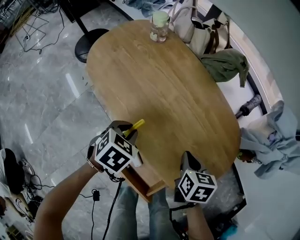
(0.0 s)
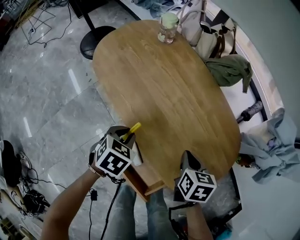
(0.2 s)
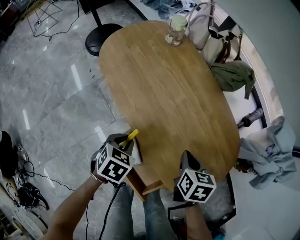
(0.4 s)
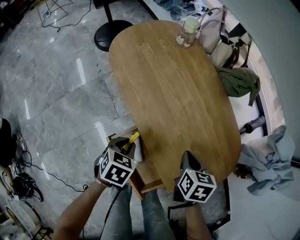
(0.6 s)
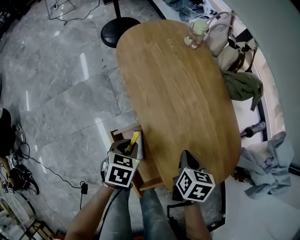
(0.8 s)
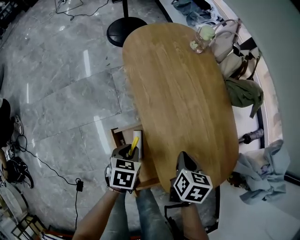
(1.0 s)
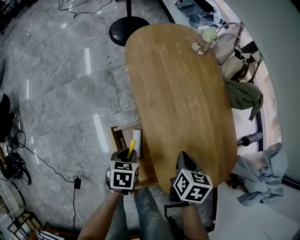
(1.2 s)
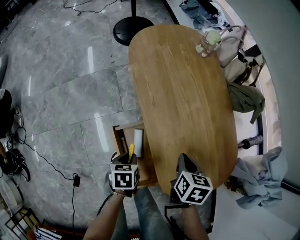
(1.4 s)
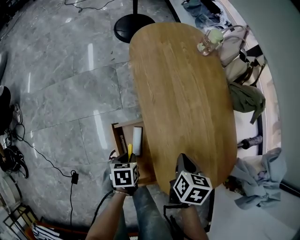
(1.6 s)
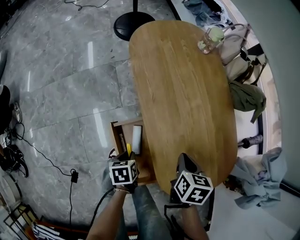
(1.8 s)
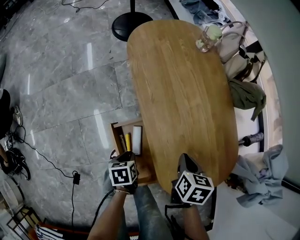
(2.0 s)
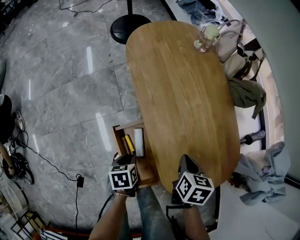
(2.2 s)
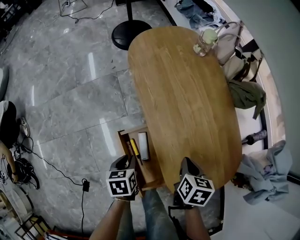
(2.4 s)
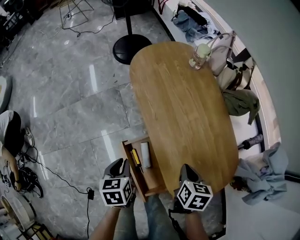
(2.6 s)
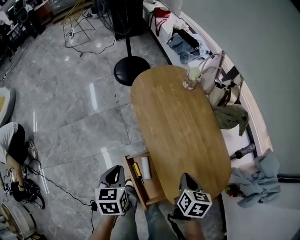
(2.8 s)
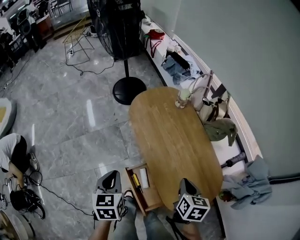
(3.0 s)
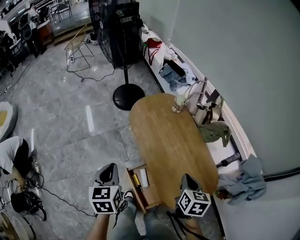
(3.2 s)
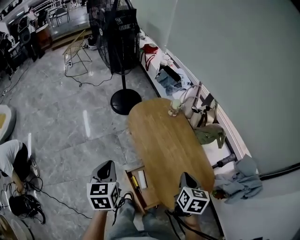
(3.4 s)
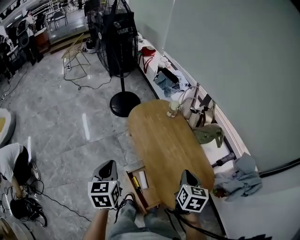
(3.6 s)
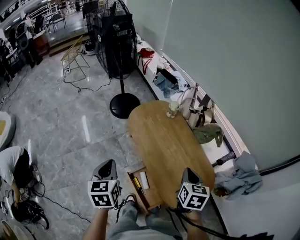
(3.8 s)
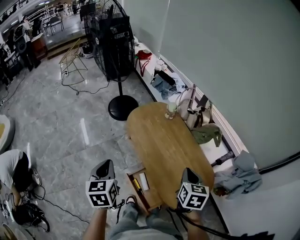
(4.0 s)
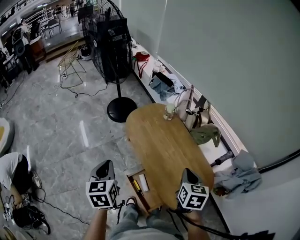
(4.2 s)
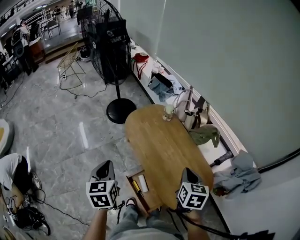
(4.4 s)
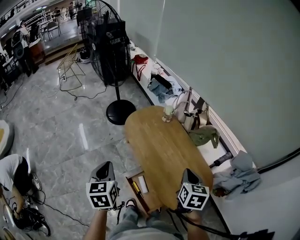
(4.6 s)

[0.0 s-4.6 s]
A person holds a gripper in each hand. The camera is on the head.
0.0 to 1.6 s: The right gripper swivels approximately 20 degrees, while the left gripper moves roughly 20 cm, and rolls counterclockwise, seen from behind, by roughly 70 degrees.
1.6 to 3.0 s: The left gripper is displaced upward by about 35 cm, and changes its angle by approximately 40 degrees. The right gripper travels upward by approximately 20 cm.
3.0 to 4.6 s: The grippers both shift upward by about 15 cm.

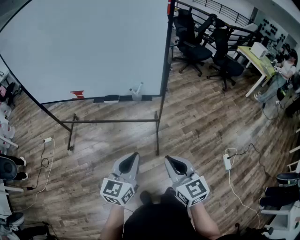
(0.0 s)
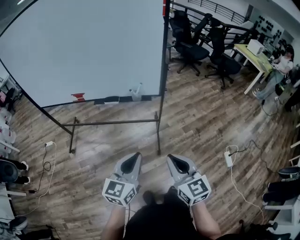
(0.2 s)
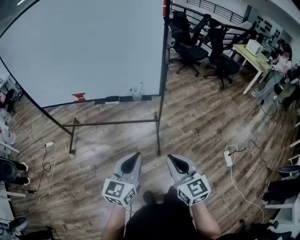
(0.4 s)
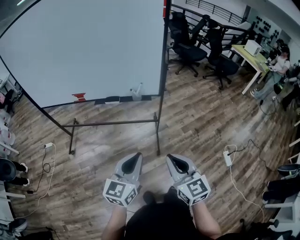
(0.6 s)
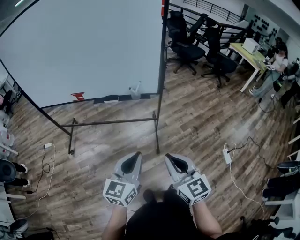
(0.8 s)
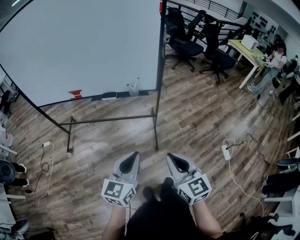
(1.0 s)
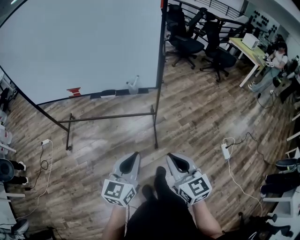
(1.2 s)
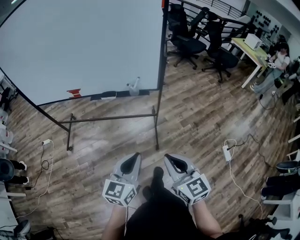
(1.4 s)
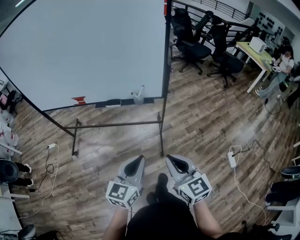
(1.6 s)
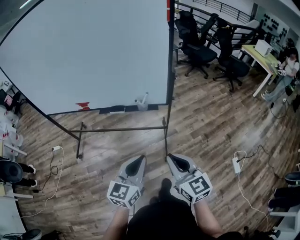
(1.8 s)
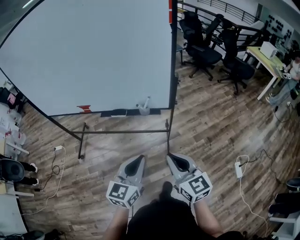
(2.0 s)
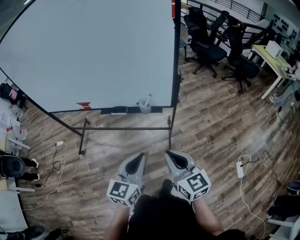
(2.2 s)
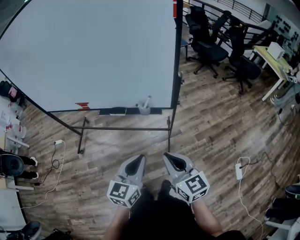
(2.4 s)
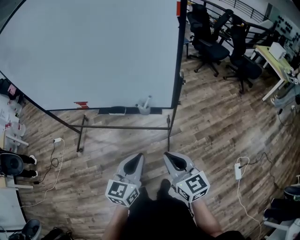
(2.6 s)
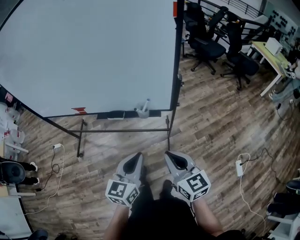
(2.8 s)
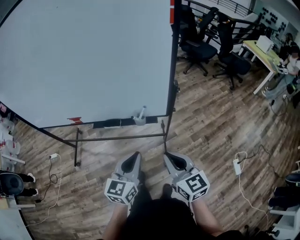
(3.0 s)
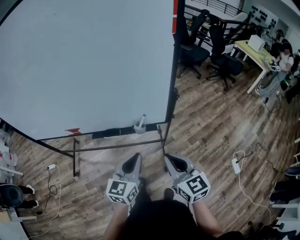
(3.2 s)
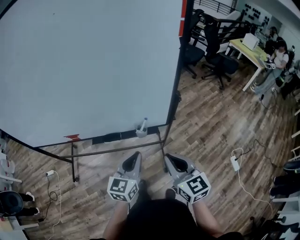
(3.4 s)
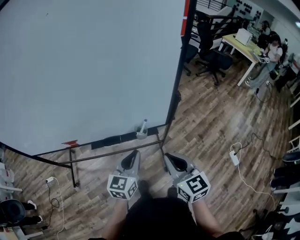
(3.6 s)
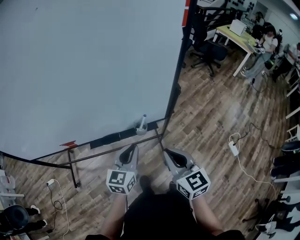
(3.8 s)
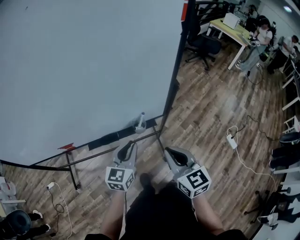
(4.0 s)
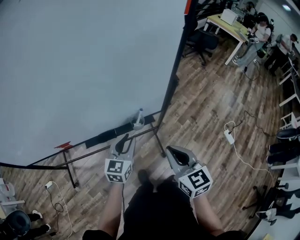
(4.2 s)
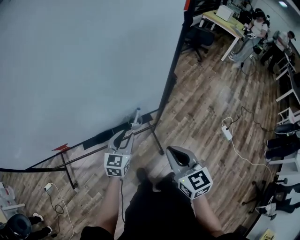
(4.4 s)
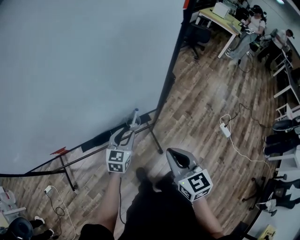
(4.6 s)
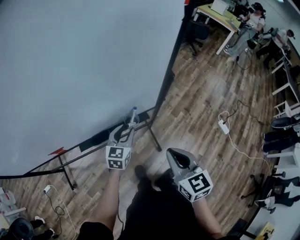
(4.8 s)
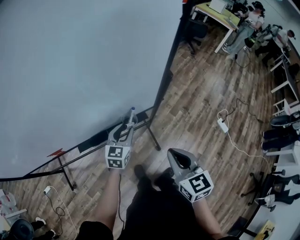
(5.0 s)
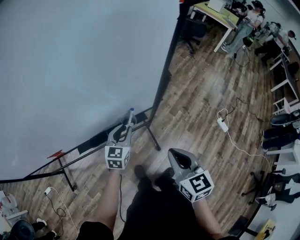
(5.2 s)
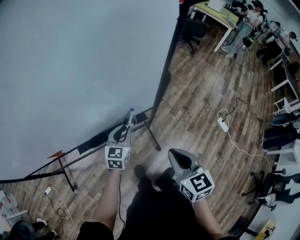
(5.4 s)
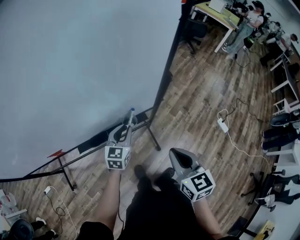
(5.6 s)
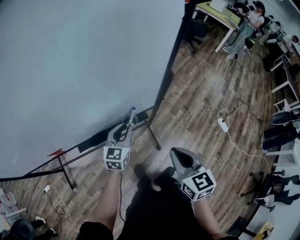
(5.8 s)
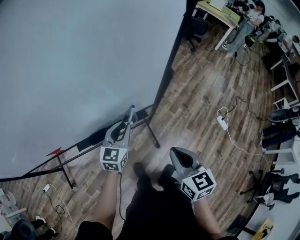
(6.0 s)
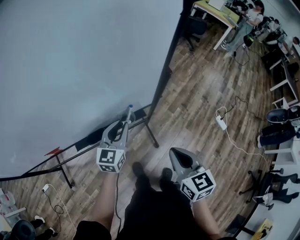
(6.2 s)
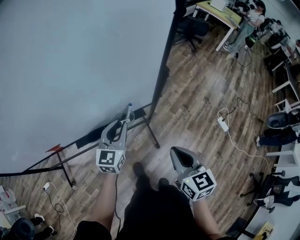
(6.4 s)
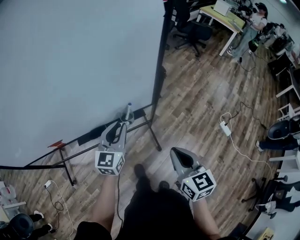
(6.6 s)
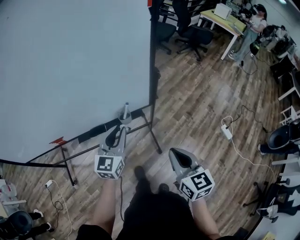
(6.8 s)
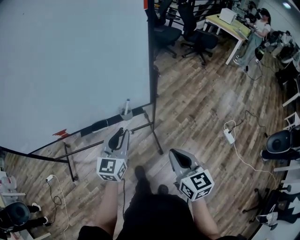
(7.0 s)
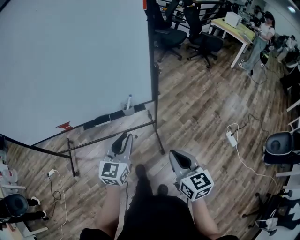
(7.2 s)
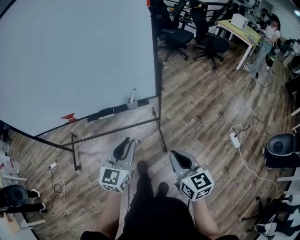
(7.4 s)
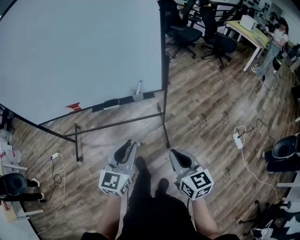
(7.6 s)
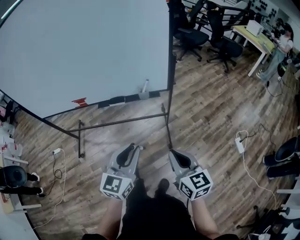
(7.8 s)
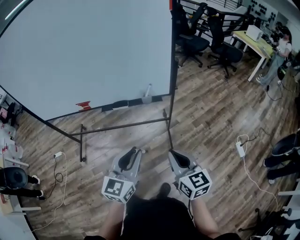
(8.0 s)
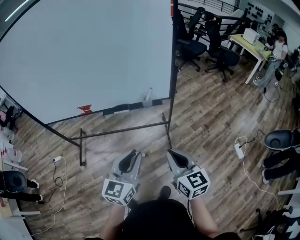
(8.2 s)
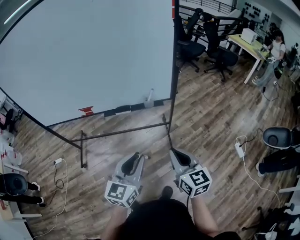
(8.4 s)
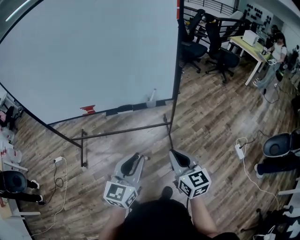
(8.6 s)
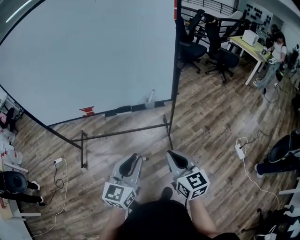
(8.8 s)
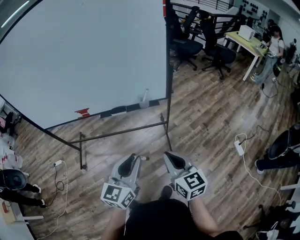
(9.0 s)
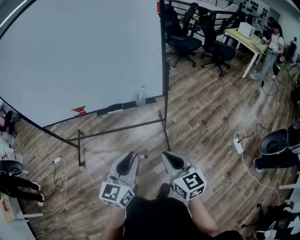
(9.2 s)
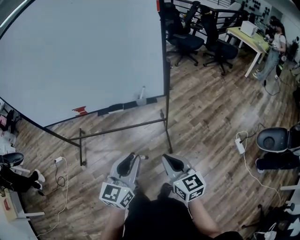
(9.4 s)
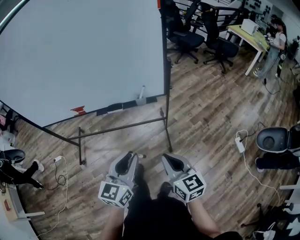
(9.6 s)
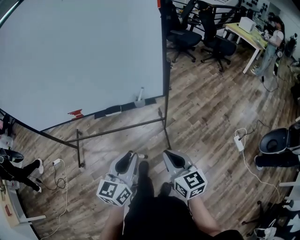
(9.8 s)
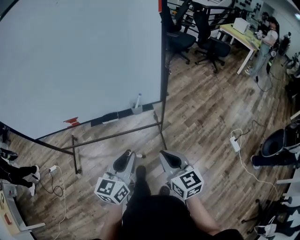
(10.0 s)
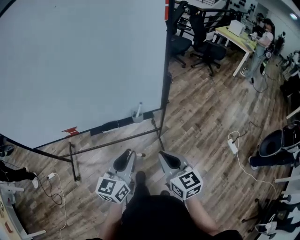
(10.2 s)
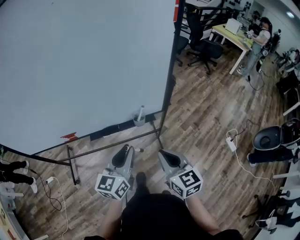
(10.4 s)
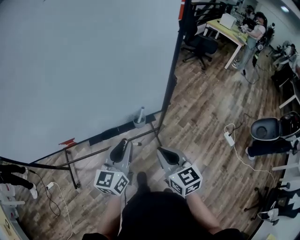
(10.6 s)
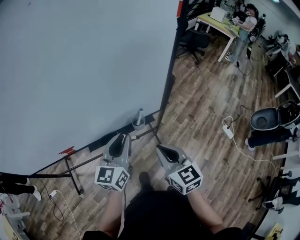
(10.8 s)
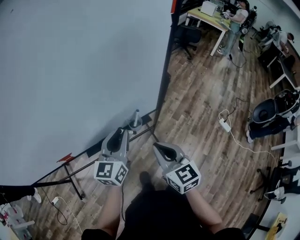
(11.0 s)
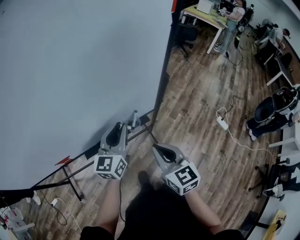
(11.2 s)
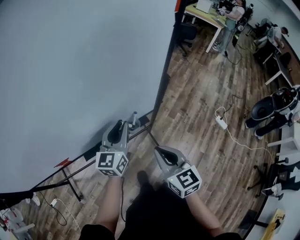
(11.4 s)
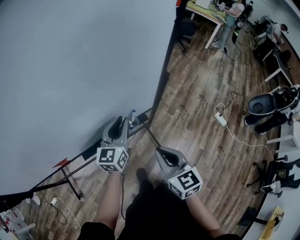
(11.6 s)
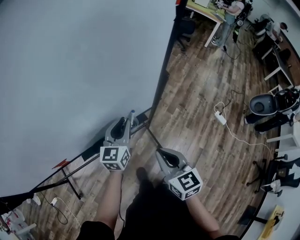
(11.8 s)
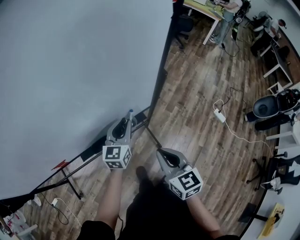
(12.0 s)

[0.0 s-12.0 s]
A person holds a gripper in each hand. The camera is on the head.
0.0 to 1.6 s: The grippers stay close to where they were, moving slightly.
1.6 to 3.0 s: Both grippers move forward, roughly 20 cm.
3.0 to 4.4 s: The left gripper is displaced forward, downward and to the left by approximately 25 cm, rotates approximately 20 degrees, and opens. The right gripper heads to the left and forward, covering roughly 10 cm, and rotates some 20 degrees.
6.0 to 7.6 s: The right gripper moves backward and to the right, about 20 cm; the left gripper is displaced backward by some 30 cm.
7.6 to 9.0 s: The right gripper travels to the left by about 5 cm. The left gripper travels backward by roughly 5 cm.
9.0 to 10.4 s: The two grippers go about 20 cm forward.
10.4 to 12.0 s: The left gripper moves forward and downward, approximately 25 cm. Meanwhile the right gripper travels forward by some 5 cm.

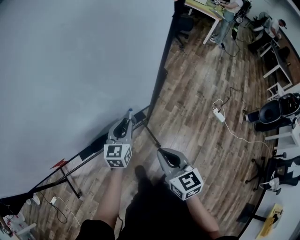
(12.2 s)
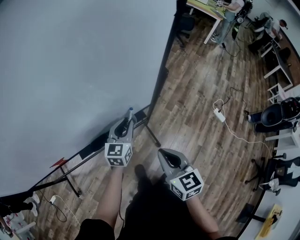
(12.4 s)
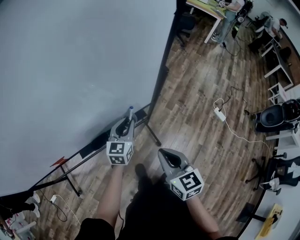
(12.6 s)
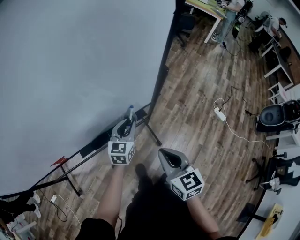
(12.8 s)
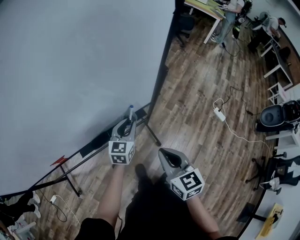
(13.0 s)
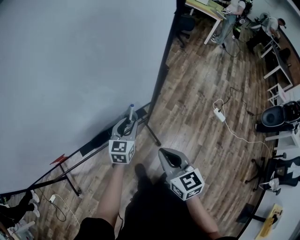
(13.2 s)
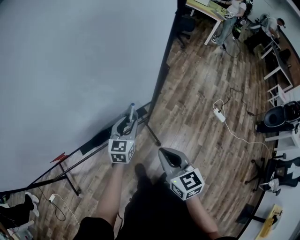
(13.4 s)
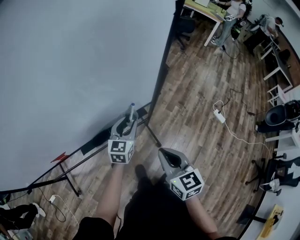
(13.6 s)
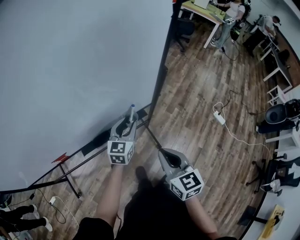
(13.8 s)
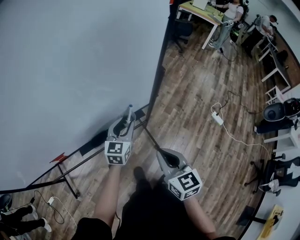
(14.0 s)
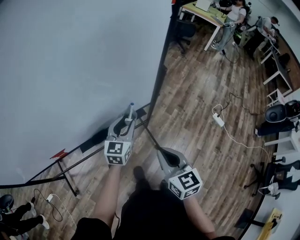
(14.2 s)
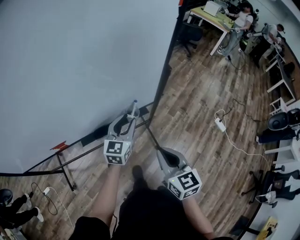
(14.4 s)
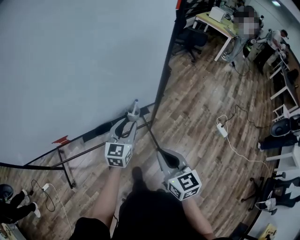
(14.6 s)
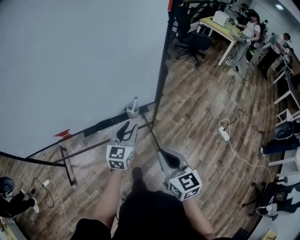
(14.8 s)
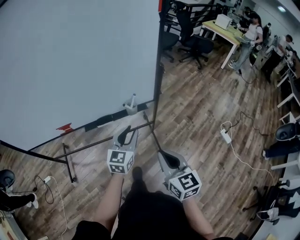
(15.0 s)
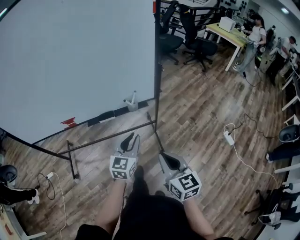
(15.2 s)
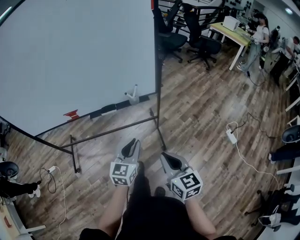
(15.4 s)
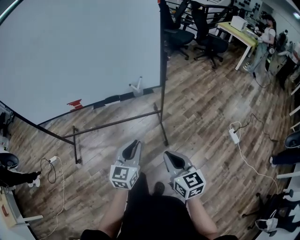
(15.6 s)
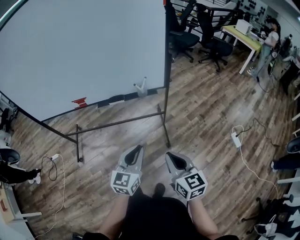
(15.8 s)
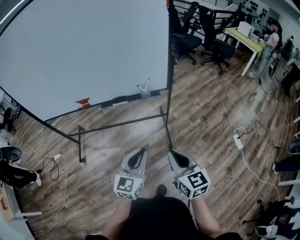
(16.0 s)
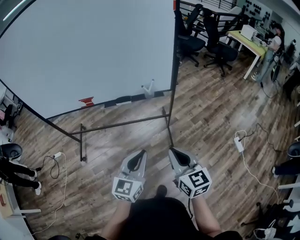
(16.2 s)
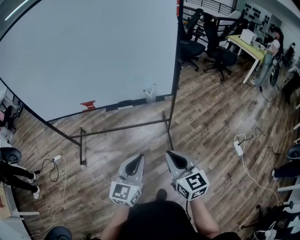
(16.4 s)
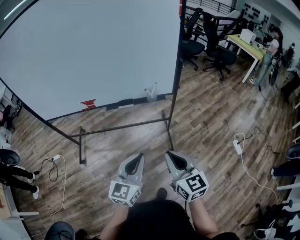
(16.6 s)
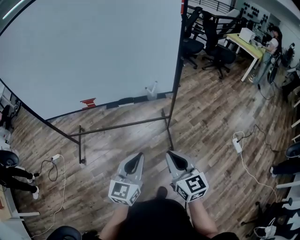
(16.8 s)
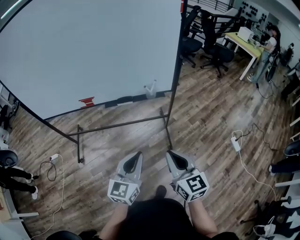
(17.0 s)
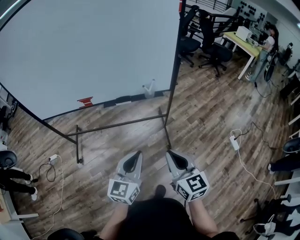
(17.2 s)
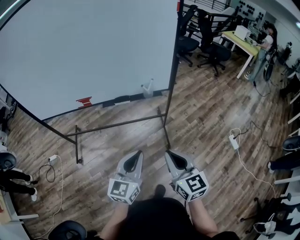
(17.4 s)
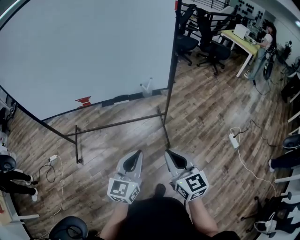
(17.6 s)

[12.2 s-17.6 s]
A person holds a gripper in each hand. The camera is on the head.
12.2 to 13.6 s: The grippers move only a little.
13.6 to 15.0 s: The left gripper goes approximately 20 cm backward and upward. The right gripper travels backward and to the right by approximately 15 cm.
15.0 to 16.2 s: The right gripper moves backward, some 10 cm, while the left gripper travels backward by about 25 cm, and closes.
16.2 to 17.6 s: The right gripper moves about 5 cm.

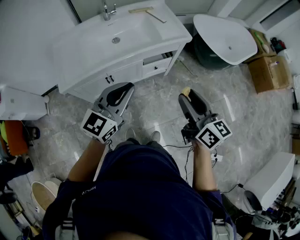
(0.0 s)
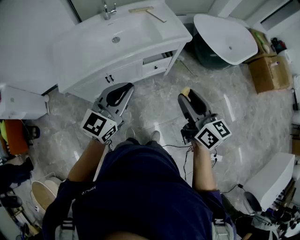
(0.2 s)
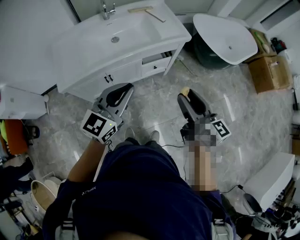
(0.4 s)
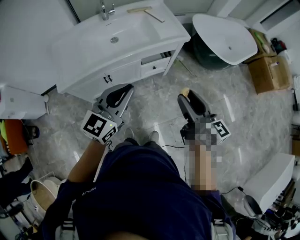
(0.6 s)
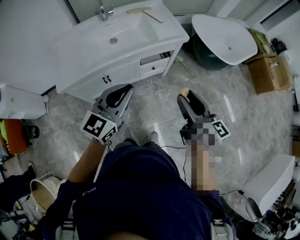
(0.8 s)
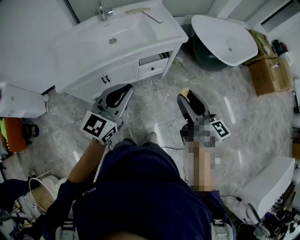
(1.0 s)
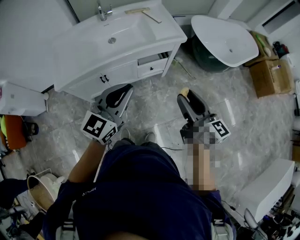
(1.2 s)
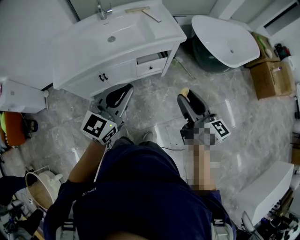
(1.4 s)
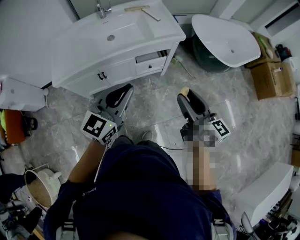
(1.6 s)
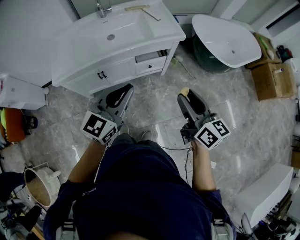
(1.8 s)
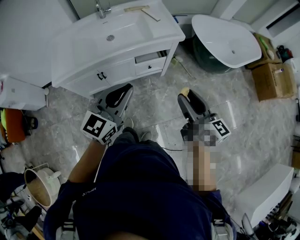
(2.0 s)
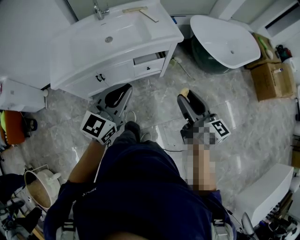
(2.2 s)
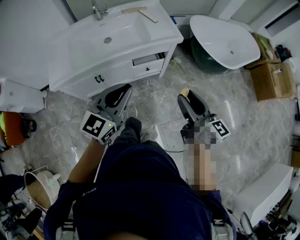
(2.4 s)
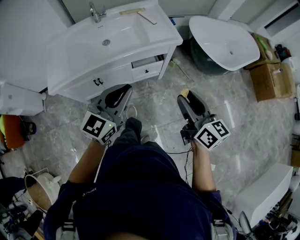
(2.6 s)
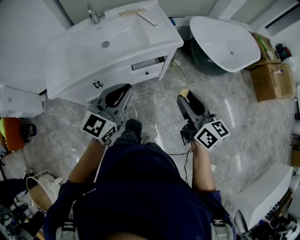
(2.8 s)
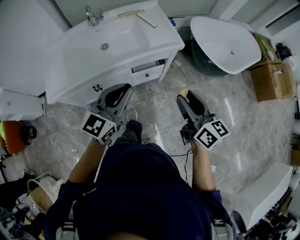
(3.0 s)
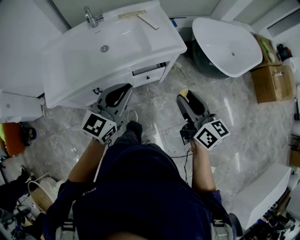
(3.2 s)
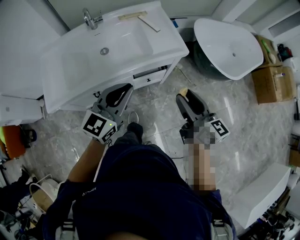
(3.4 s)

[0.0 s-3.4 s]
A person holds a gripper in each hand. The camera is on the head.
0.0 to 1.6 s: The two grippers go approximately 10 cm to the right.
1.6 to 3.4 s: Both grippers move forward, some 20 cm.
